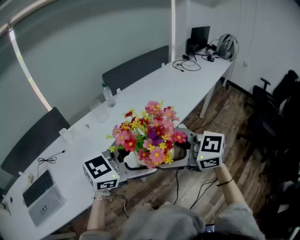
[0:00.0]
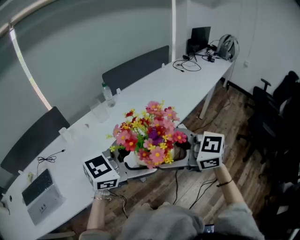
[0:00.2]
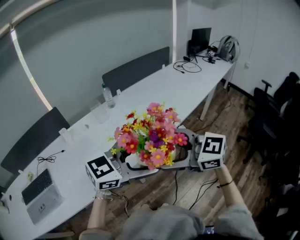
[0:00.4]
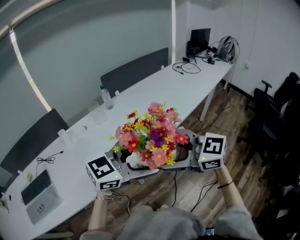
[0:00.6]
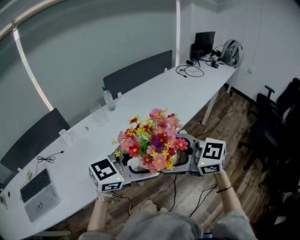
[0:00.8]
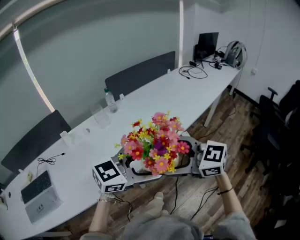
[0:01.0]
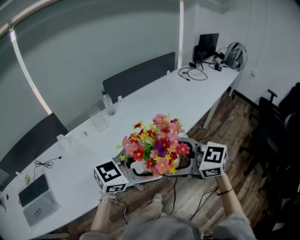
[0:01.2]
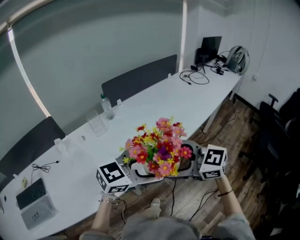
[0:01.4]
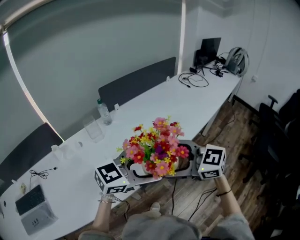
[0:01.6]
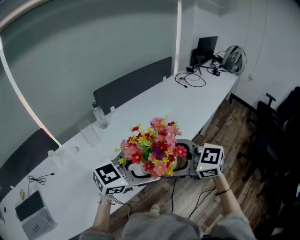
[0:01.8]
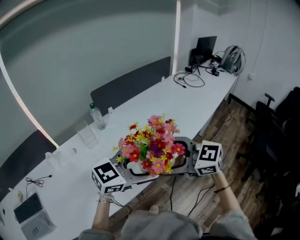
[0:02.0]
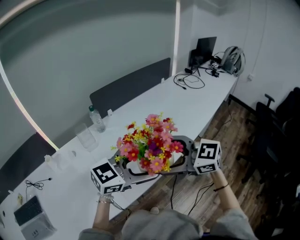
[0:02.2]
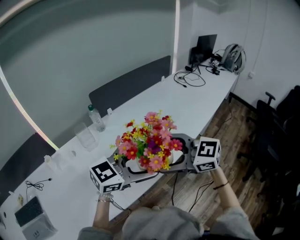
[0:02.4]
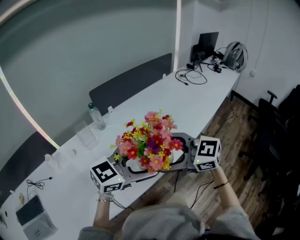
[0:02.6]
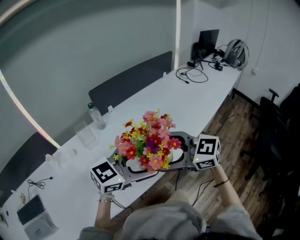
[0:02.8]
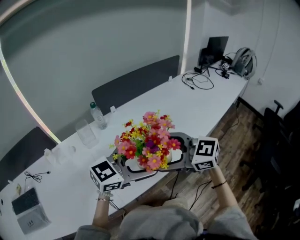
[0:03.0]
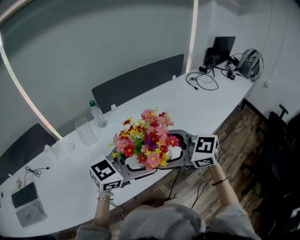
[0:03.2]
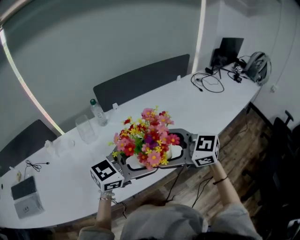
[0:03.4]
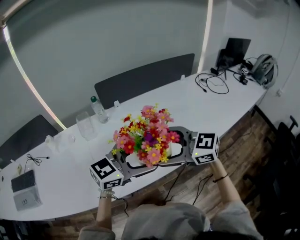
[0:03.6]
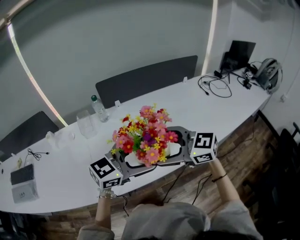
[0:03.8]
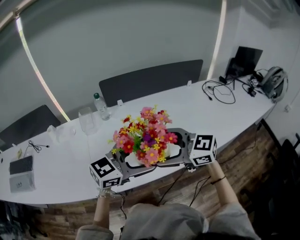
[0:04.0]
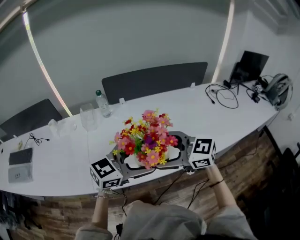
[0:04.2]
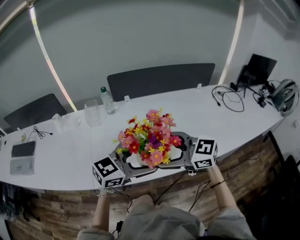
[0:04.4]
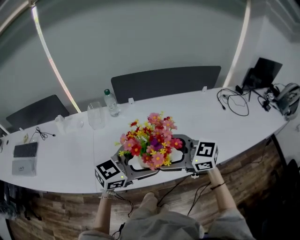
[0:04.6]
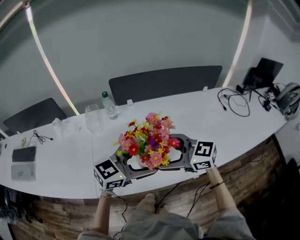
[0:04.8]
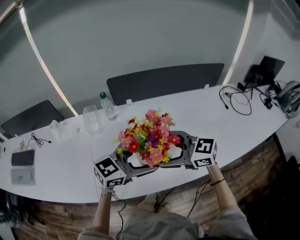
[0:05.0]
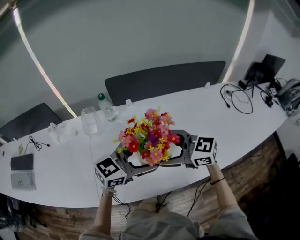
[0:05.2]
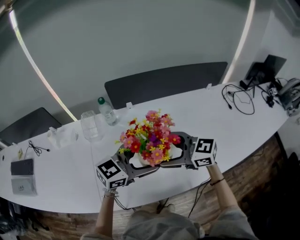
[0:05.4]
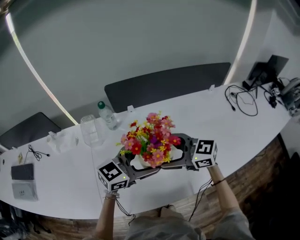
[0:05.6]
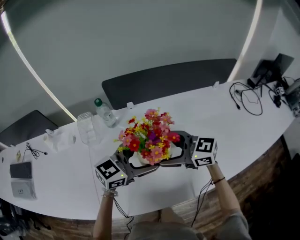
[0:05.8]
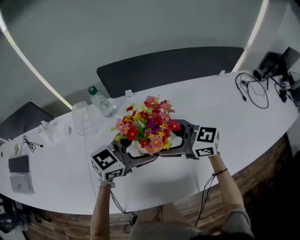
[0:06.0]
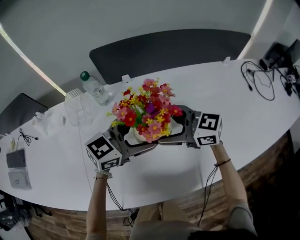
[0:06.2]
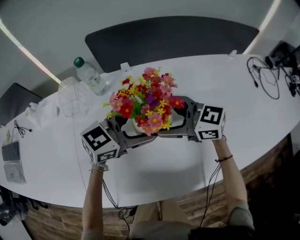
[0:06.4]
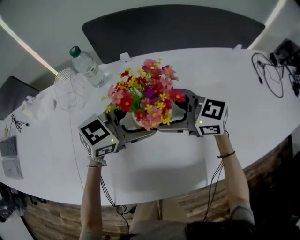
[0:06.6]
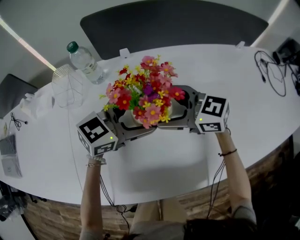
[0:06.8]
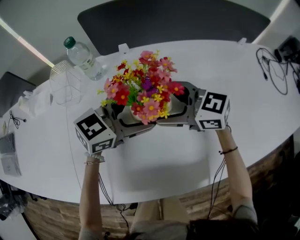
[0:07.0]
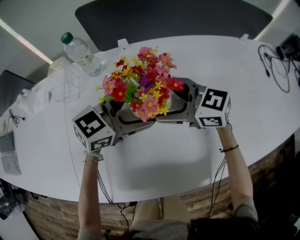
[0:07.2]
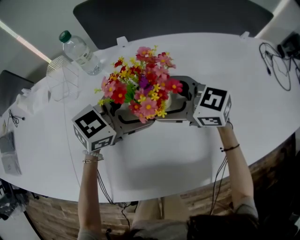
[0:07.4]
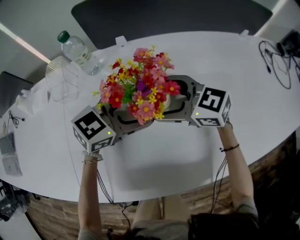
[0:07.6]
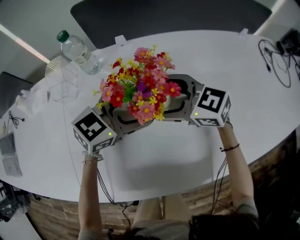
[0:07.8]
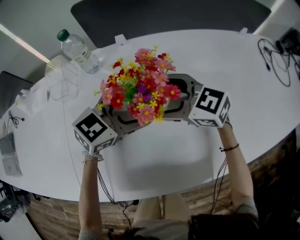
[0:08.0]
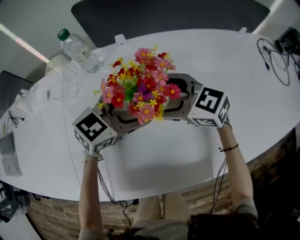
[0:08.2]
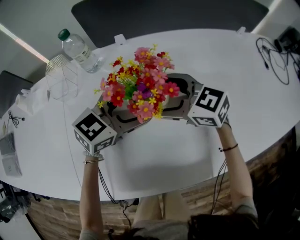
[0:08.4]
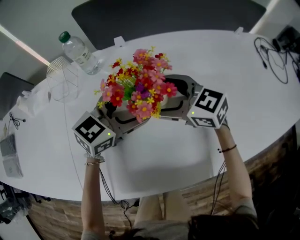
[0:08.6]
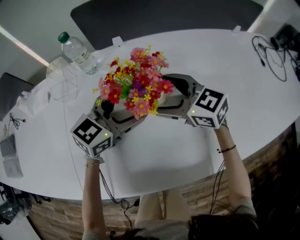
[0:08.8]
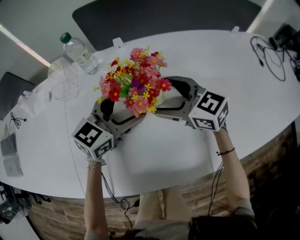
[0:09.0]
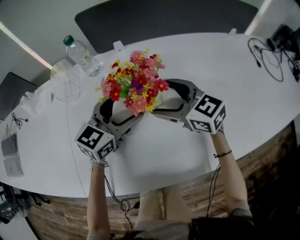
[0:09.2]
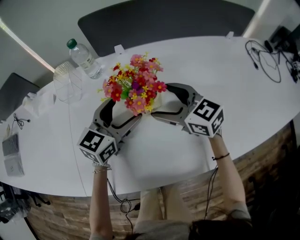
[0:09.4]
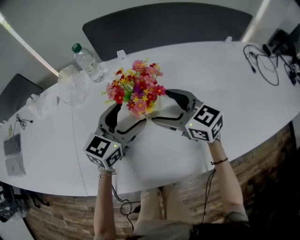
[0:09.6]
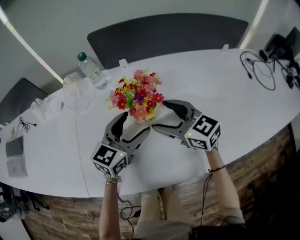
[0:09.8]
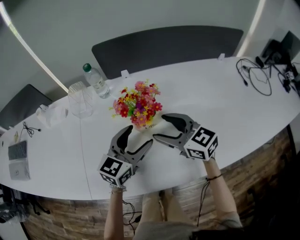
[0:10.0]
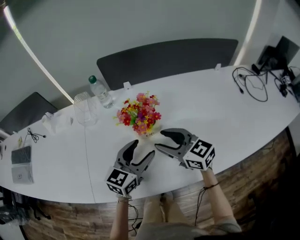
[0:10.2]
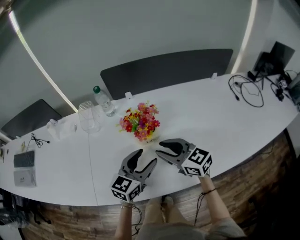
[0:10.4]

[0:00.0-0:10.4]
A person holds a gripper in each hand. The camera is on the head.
0:00.0 to 0:01.4: The left gripper changes place by about 15 cm. The right gripper shifts by about 15 cm.
0:01.4 to 0:03.0: The right gripper shifts by about 15 cm; the left gripper ends up roughly 15 cm from where it was.
0:03.0 to 0:04.4: The right gripper shifts by about 15 cm, and rotates about 20 degrees, while the left gripper shifts by roughly 15 cm, and changes its angle by about 20 degrees.
0:04.4 to 0:06.0: The left gripper changes place by some 25 cm; the right gripper moves approximately 25 cm.
0:06.0 to 0:07.4: Both grippers travel together downward, roughly 10 cm.
0:07.4 to 0:09.0: The grippers stay close to where they were, moving slightly.
0:09.0 to 0:10.4: The left gripper goes approximately 10 cm backward, and closes. The right gripper shifts roughly 15 cm backward and upward, and closes up.

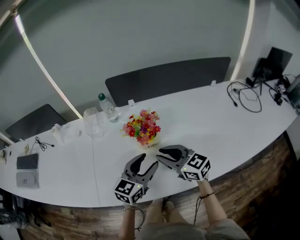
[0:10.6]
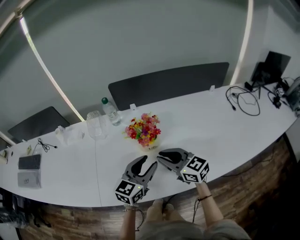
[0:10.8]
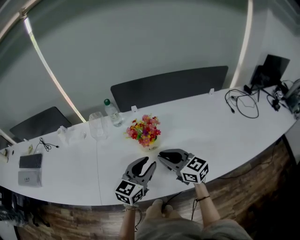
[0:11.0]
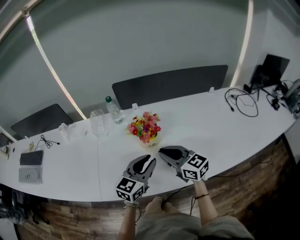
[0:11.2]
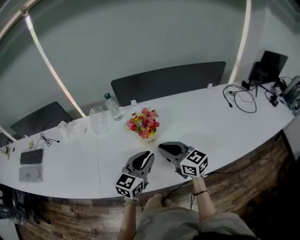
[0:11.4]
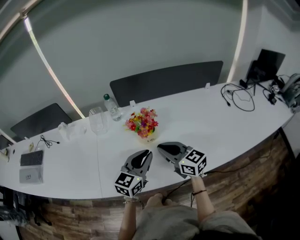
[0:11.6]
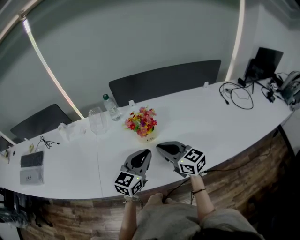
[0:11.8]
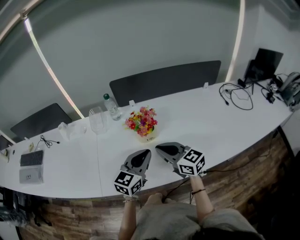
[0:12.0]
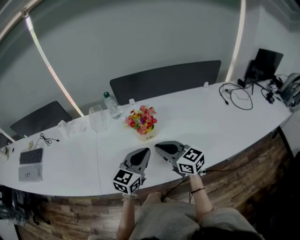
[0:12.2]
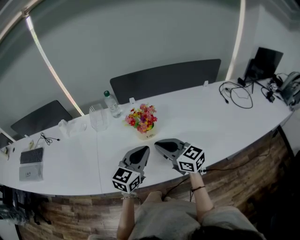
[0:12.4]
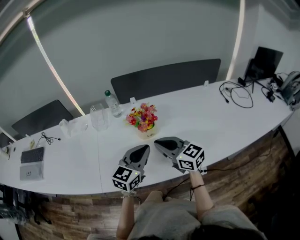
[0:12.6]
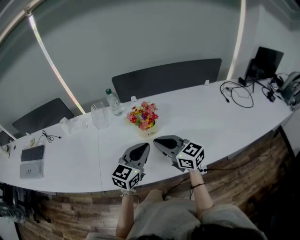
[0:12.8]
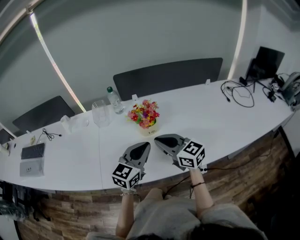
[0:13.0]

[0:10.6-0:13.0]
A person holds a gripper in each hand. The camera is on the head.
0:10.6 to 0:11.8: The left gripper ends up roughly 5 cm from where it was, and closes up.
0:11.8 to 0:13.0: The grippers make only small movements.

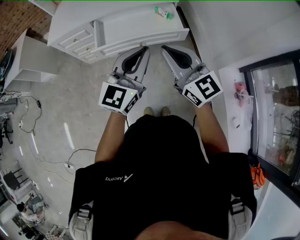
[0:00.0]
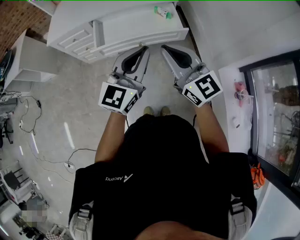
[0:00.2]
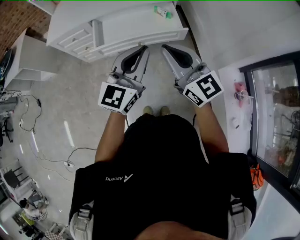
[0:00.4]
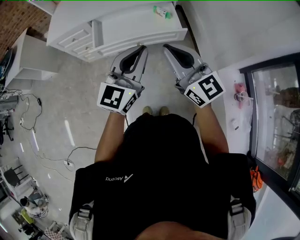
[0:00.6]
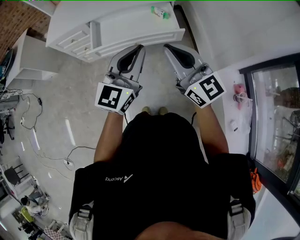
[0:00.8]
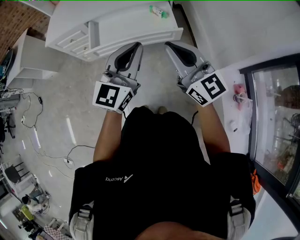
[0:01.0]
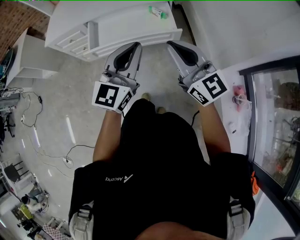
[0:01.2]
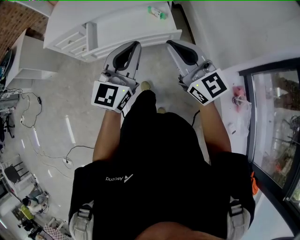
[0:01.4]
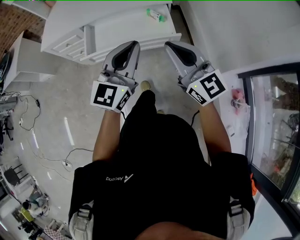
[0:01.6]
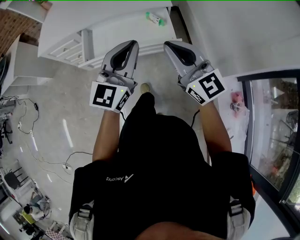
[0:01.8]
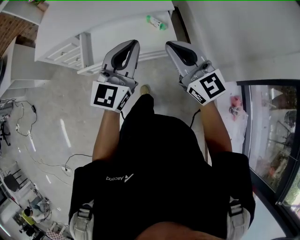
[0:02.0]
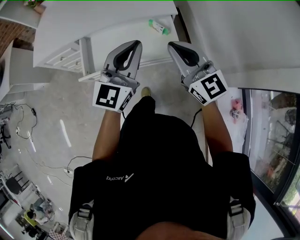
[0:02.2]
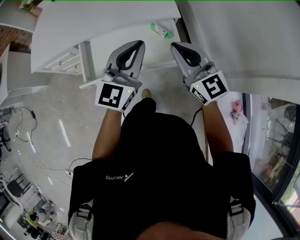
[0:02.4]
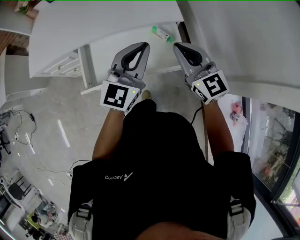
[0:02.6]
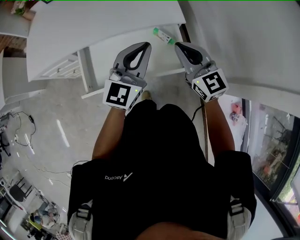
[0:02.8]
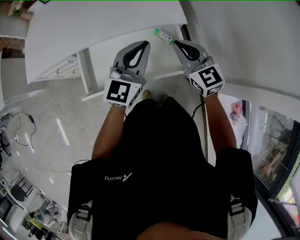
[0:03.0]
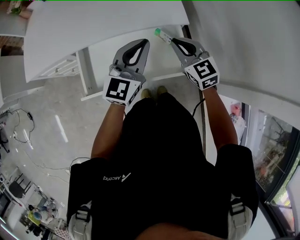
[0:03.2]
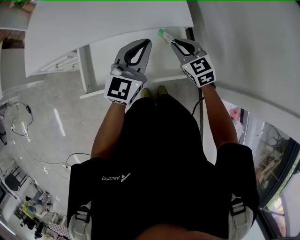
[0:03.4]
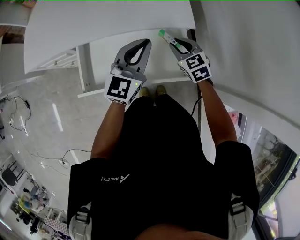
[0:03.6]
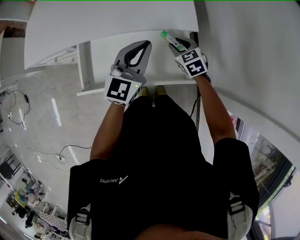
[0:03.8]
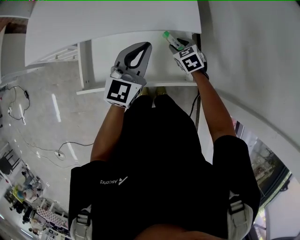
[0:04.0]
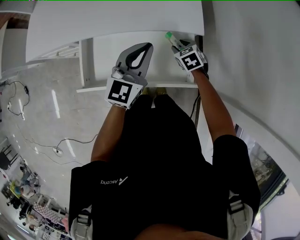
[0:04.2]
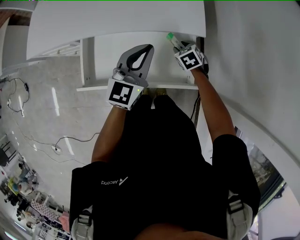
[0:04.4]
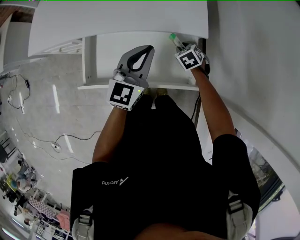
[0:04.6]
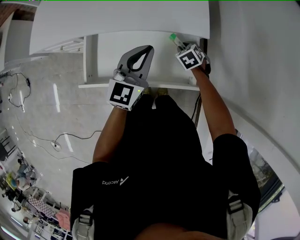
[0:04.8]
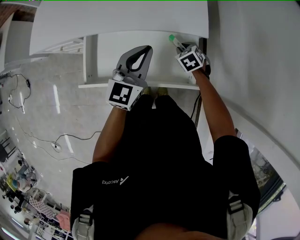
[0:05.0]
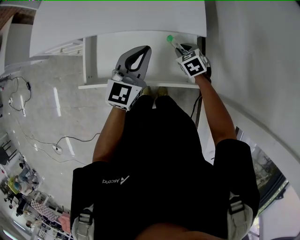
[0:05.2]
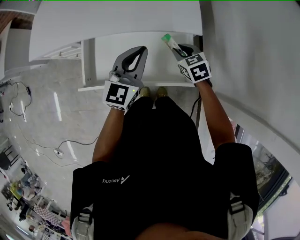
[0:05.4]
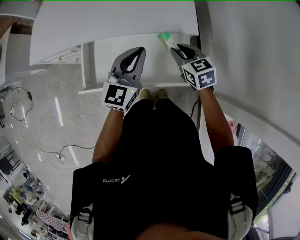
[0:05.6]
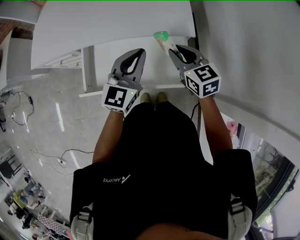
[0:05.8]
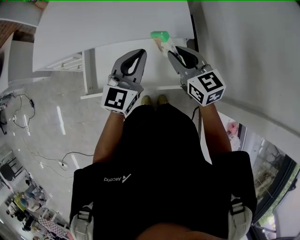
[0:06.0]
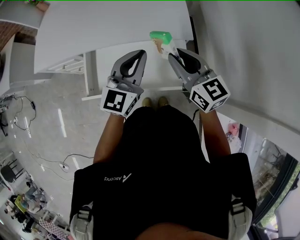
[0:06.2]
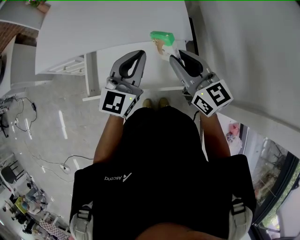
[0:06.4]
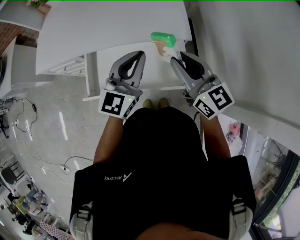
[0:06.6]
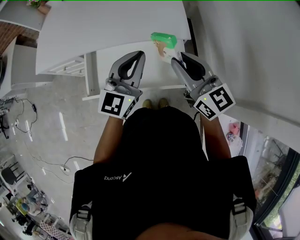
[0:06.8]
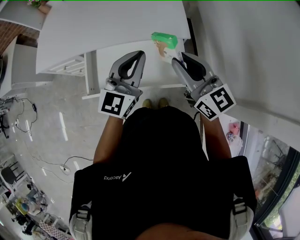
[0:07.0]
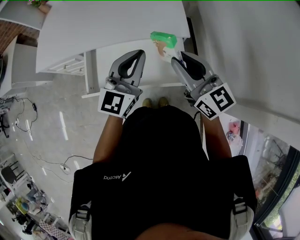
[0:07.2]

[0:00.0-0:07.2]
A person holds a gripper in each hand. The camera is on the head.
0:00.0 to 0:01.4: The right gripper shifts roughly 10 cm to the right, while the left gripper is displaced to the right and forward by approximately 10 cm.
0:01.4 to 0:02.8: Both grippers move forward, approximately 30 cm. The right gripper turns by approximately 20 degrees.
0:02.8 to 0:04.4: The left gripper shifts about 10 cm downward and forward, while the right gripper goes approximately 30 cm downward and forward, tilts its fingers about 50 degrees downward, and opens.
0:04.4 to 0:05.8: The right gripper shifts about 20 cm upward, and points its fingers approximately 40 degrees further upward.
0:05.8 to 0:07.2: The left gripper goes roughly 5 cm upward. The right gripper moves upward and backward, roughly 15 cm, and turns by approximately 30 degrees.

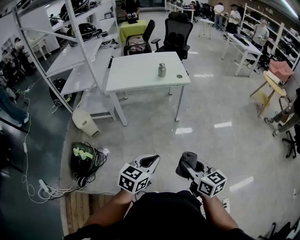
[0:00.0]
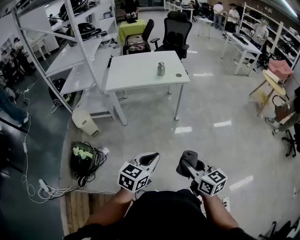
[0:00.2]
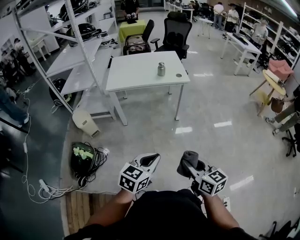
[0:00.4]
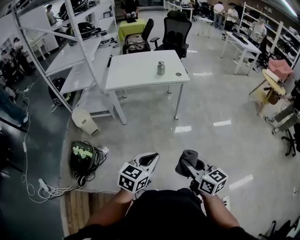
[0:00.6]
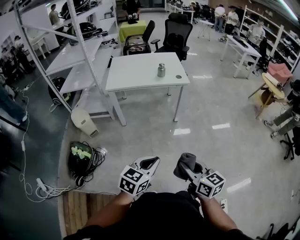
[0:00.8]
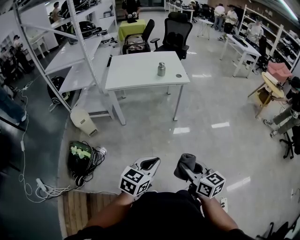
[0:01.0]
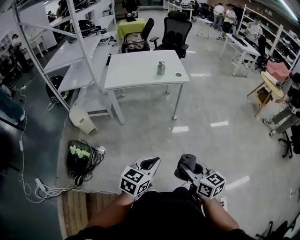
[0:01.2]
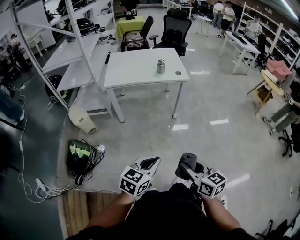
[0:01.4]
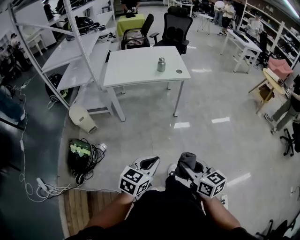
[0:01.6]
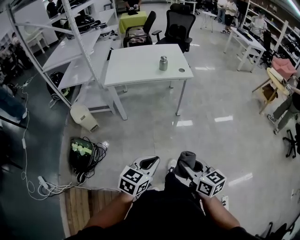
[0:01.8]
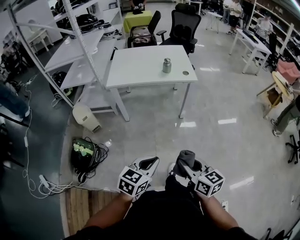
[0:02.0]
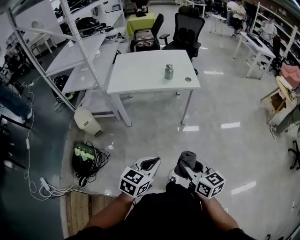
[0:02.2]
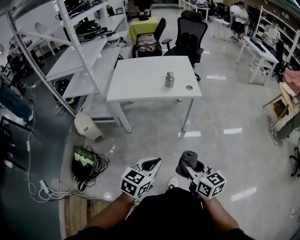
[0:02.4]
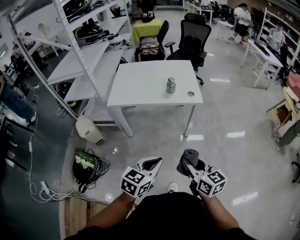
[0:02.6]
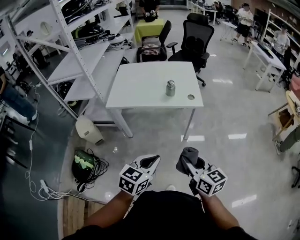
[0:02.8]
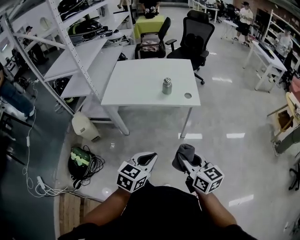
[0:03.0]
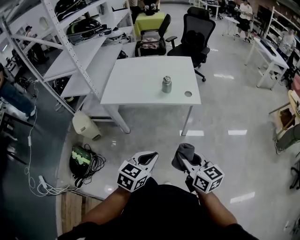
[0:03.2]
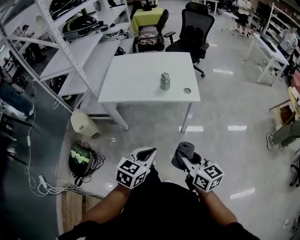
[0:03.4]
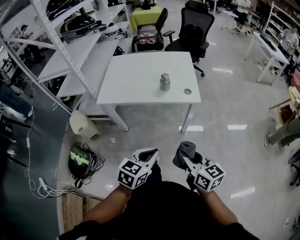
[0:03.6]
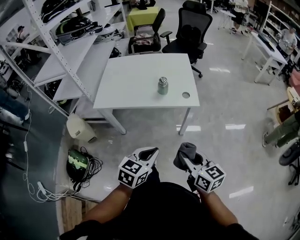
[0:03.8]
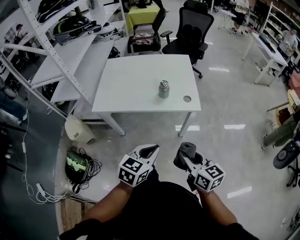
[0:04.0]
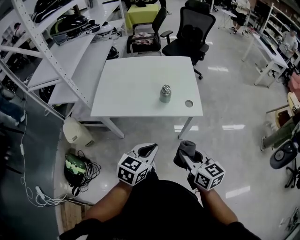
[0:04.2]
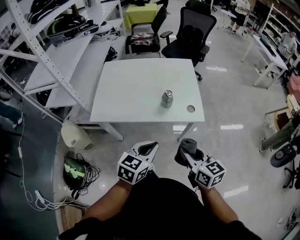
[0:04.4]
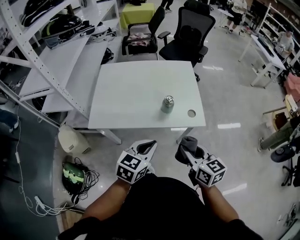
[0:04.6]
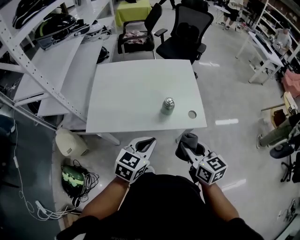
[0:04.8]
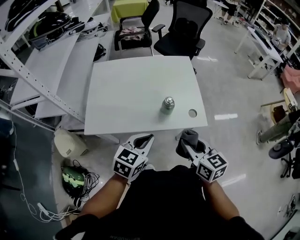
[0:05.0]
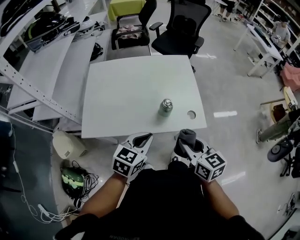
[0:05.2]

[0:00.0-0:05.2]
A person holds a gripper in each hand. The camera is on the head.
0:00.0 to 0:01.8: The grippers stay close to where they were, moving slightly.
0:01.8 to 0:03.4: The grippers both shift forward by some 30 cm.
0:03.4 to 0:05.2: Both grippers travel together forward, about 35 cm.
